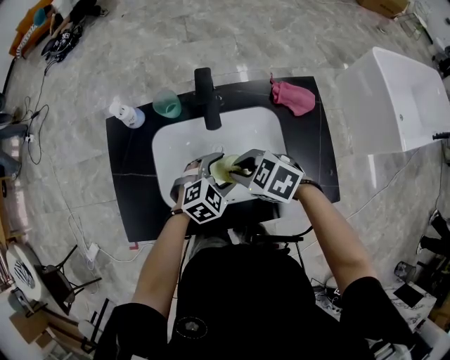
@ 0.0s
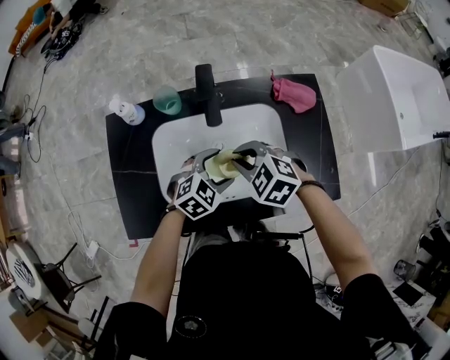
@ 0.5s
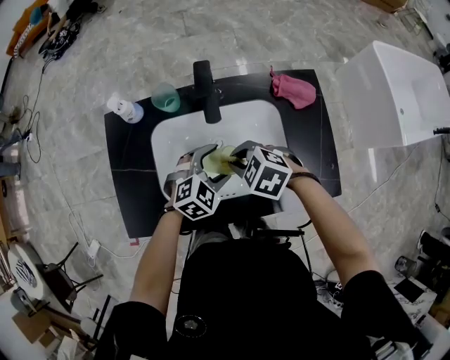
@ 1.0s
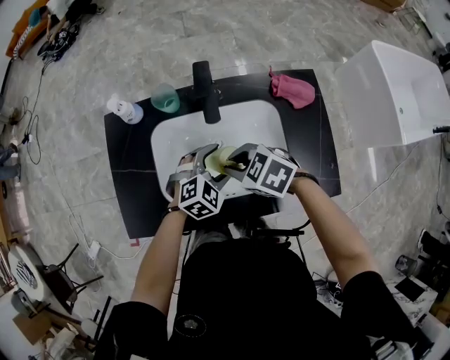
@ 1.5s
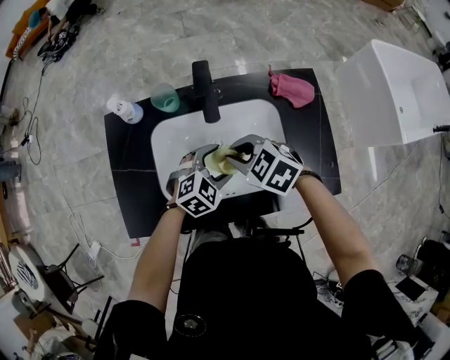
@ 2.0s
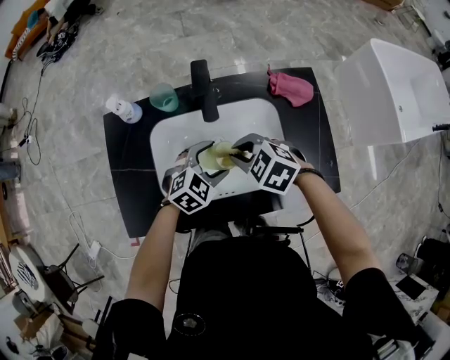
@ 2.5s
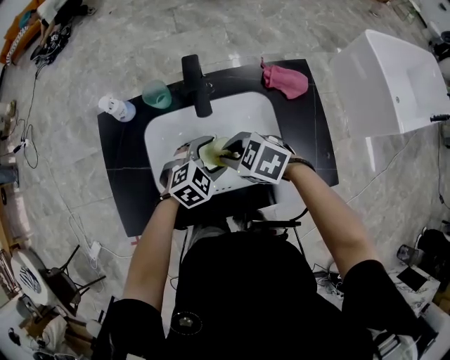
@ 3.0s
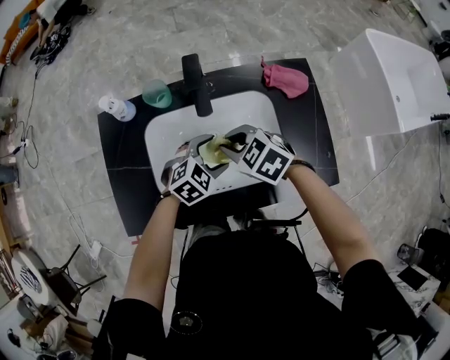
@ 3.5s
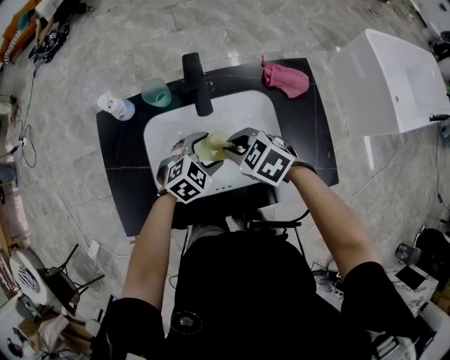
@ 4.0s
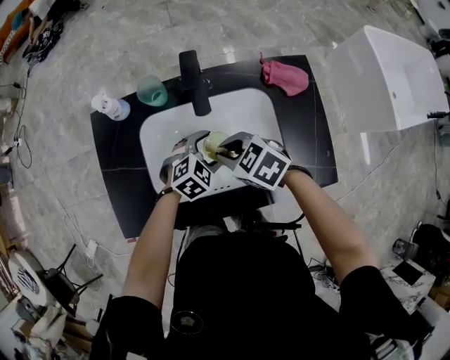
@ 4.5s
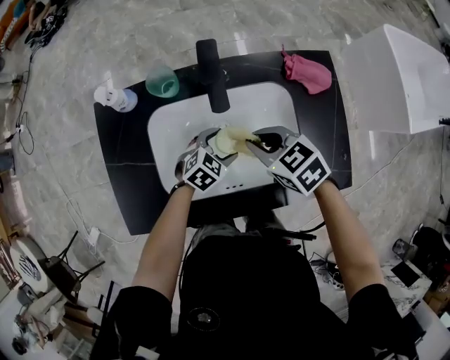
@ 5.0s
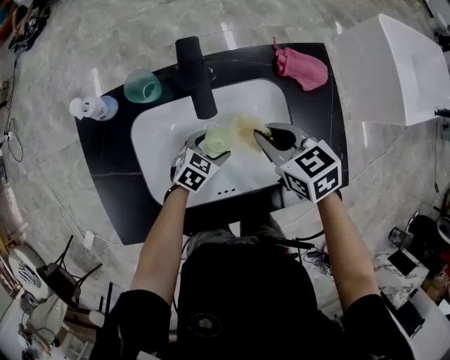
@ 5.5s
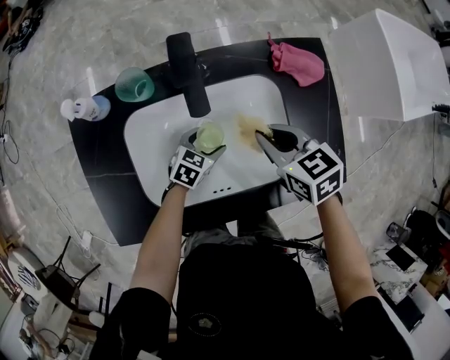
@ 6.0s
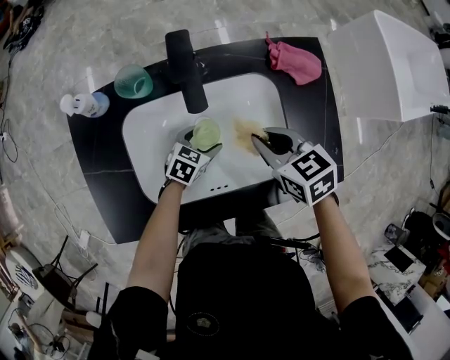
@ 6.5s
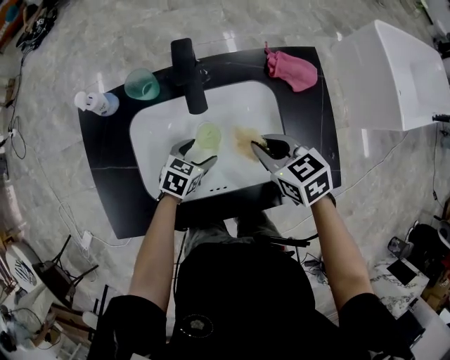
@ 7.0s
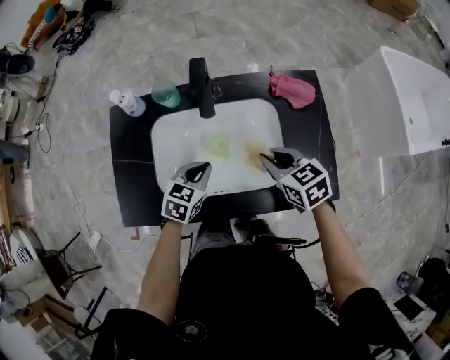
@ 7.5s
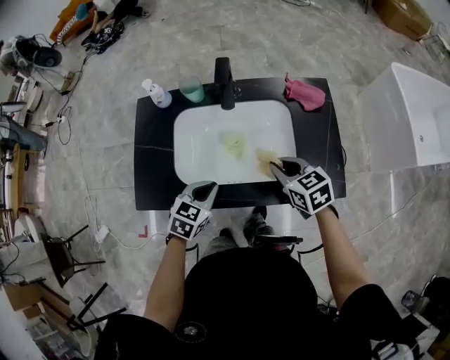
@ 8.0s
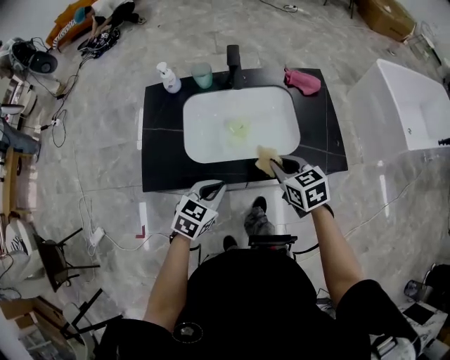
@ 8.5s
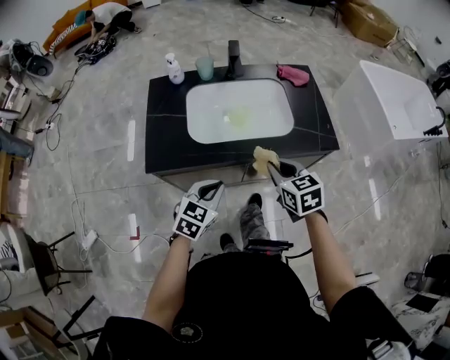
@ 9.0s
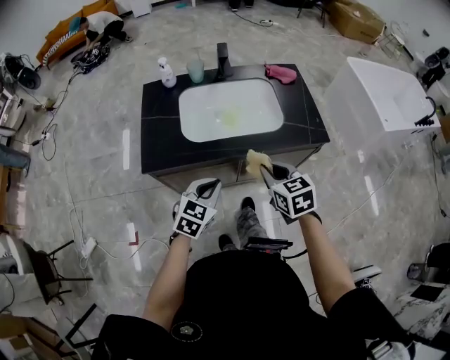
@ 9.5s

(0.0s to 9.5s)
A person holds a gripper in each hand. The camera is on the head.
2.0s - 4.0s: The grippers make only small movements.
4.0s - 5.5s: The left gripper moves downward, some 10 cm, and rotates some 20 degrees. Meanwhile the right gripper changes place by roughly 10 cm, and turns by some 30 degrees.
5.5s - 7.5s: The right gripper is displaced backward by about 5 cm. Meanwhile the left gripper shifts some 15 cm upward, changes its angle by about 20 degrees, and closes.
7.5s - 9.5s: Both grippers move backward, roughly 30 cm.

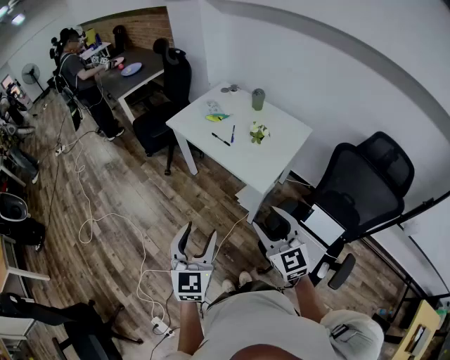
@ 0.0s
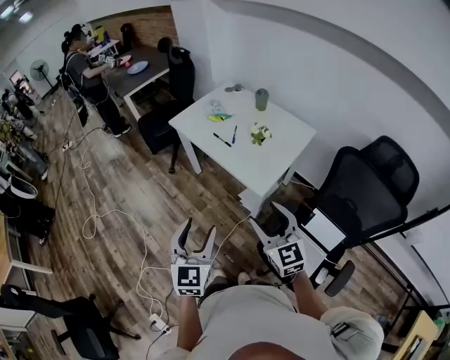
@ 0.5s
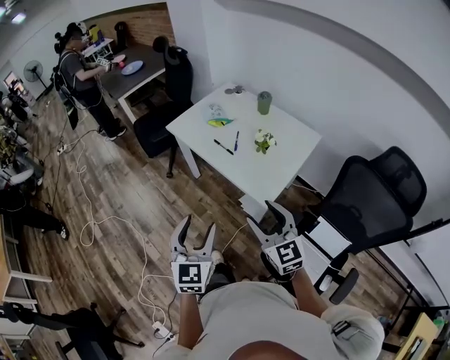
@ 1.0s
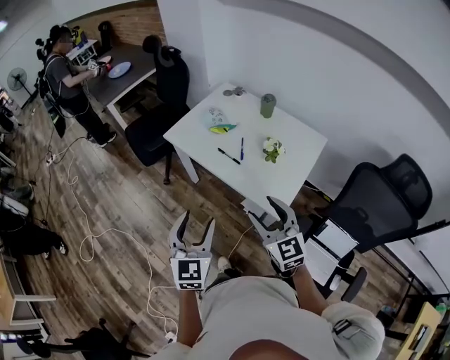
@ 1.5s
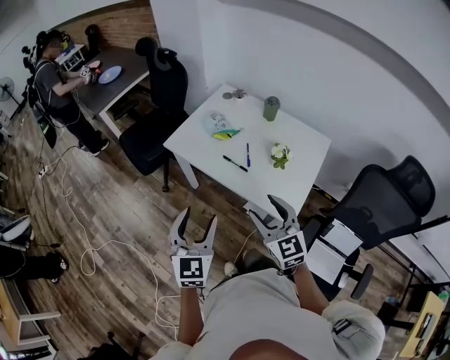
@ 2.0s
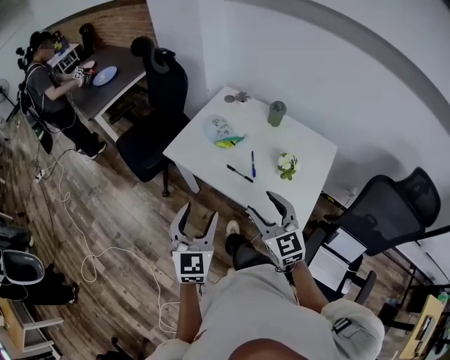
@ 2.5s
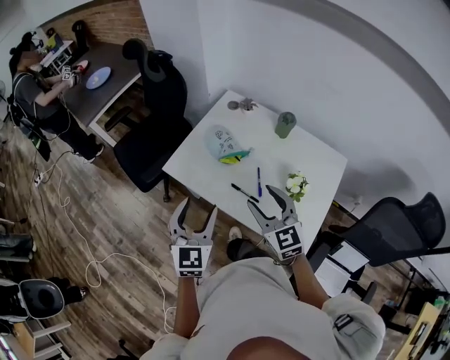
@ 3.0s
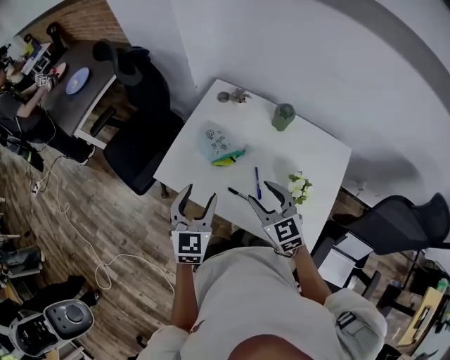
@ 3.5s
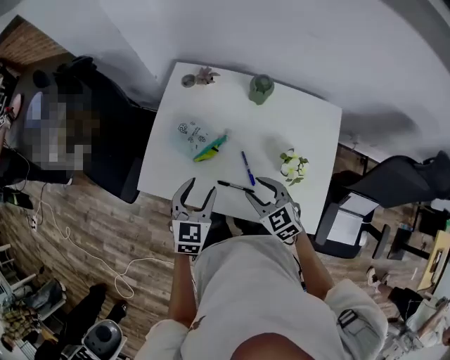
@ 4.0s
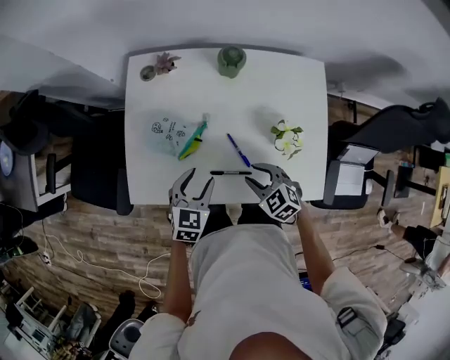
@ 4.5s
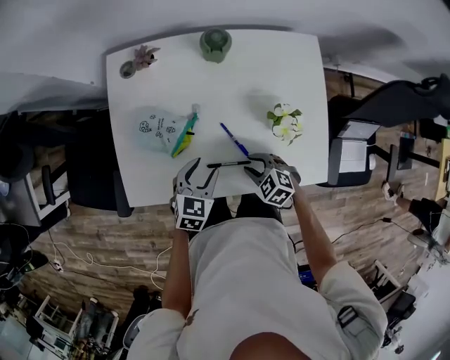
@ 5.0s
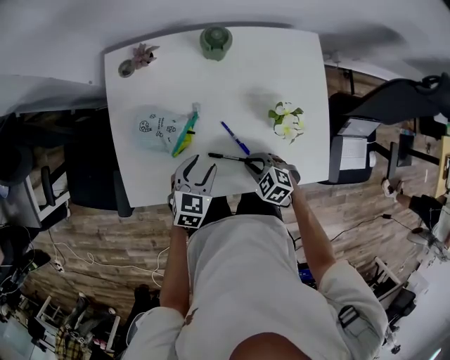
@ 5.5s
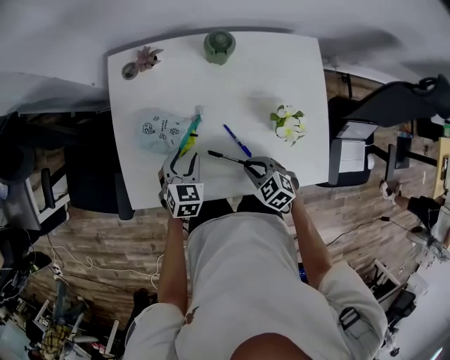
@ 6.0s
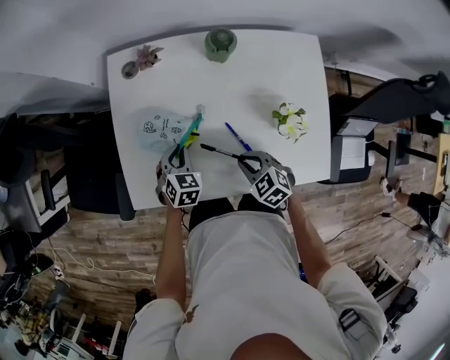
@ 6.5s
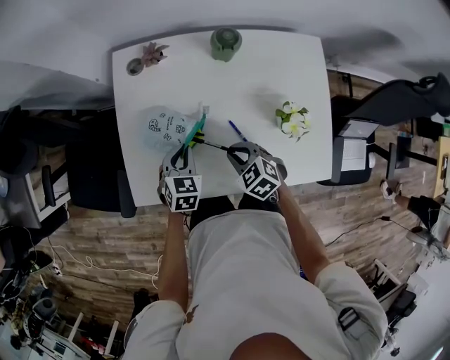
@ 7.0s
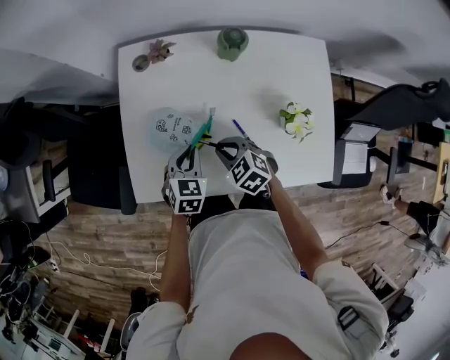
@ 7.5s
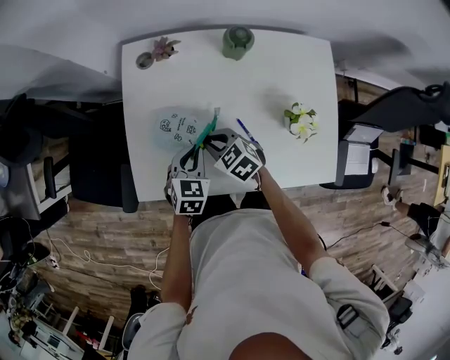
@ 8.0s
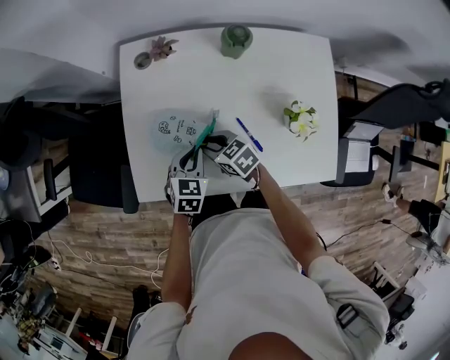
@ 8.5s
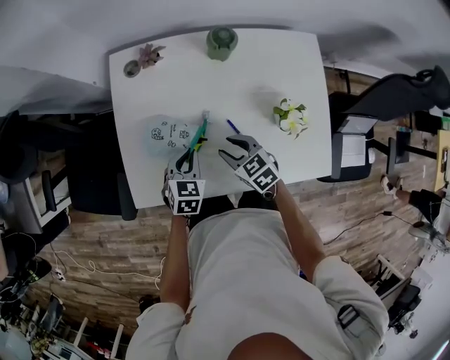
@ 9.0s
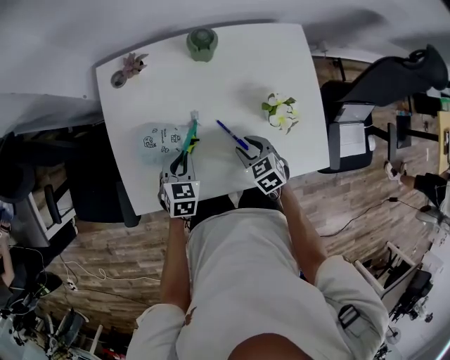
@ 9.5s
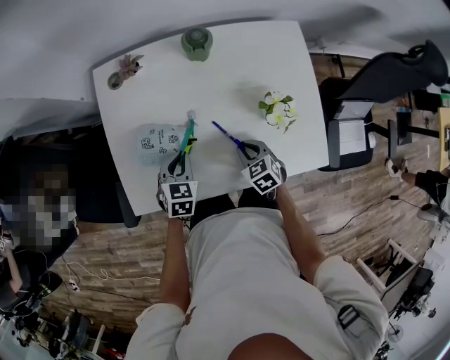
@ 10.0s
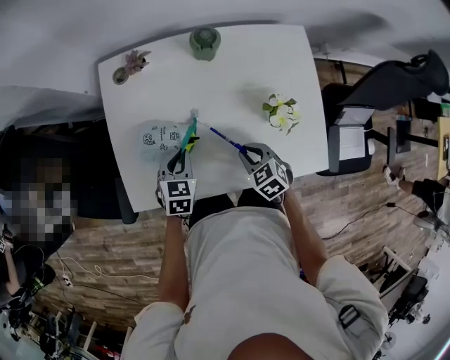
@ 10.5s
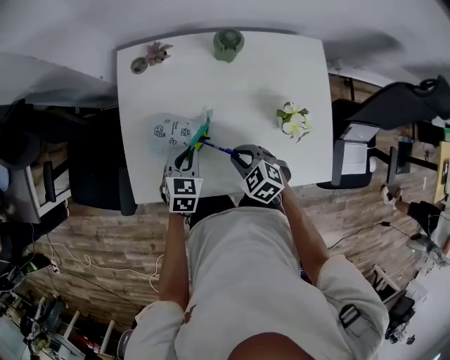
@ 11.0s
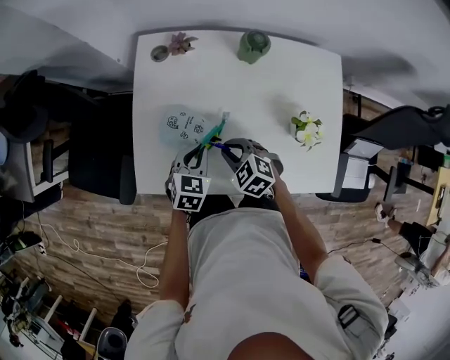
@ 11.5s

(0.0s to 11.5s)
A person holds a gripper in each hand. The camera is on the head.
0.0s - 2.0s: Both grippers move forward, some 30 cm.
2.0s - 4.0s: The grippers both shift forward and downward by approximately 35 cm. The right gripper changes its angle by approximately 30 degrees. The left gripper swivels some 30 degrees.
4.0s - 6.0s: The left gripper heads downward and forward, covering some 15 cm, and rotates some 20 degrees. The right gripper shifts roughly 15 cm downward, changes its angle by some 20 degrees, and closes.
6.0s - 7.5s: The right gripper is displaced forward and to the left by about 15 cm, while the left gripper closes its fingers.
7.5s - 9.5s: The right gripper shifts approximately 10 cm to the right, turns by about 30 degrees, and opens up.
9.5s - 11.5s: The right gripper is displaced to the left by some 15 cm, and changes its angle by roughly 30 degrees.

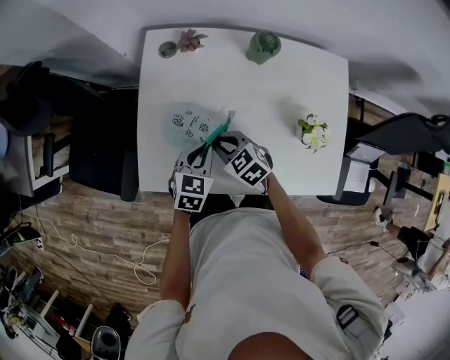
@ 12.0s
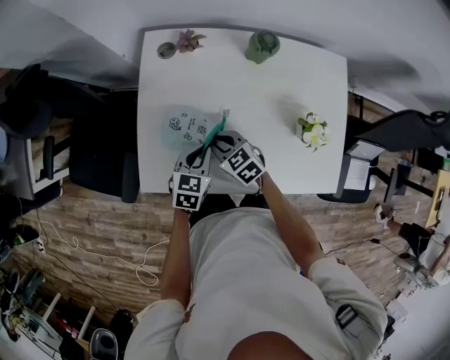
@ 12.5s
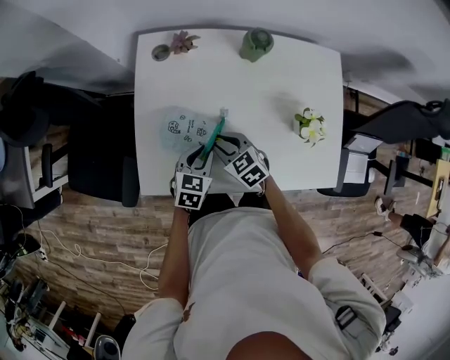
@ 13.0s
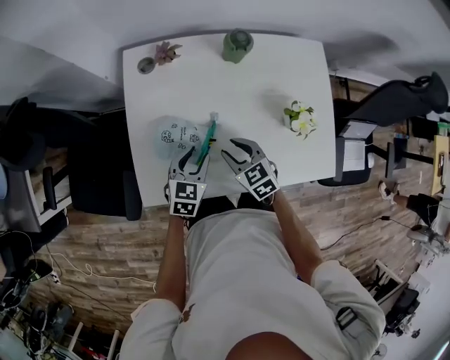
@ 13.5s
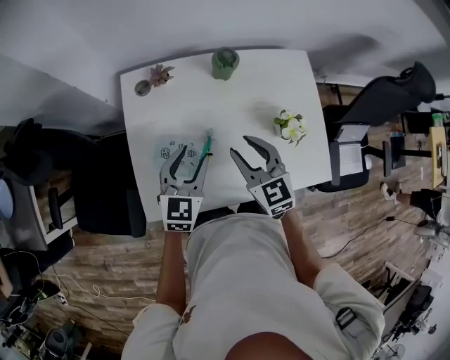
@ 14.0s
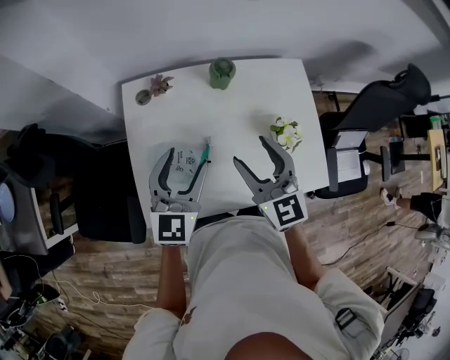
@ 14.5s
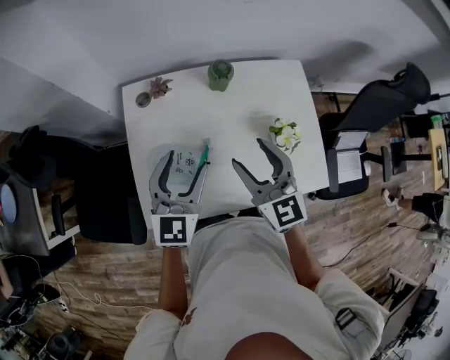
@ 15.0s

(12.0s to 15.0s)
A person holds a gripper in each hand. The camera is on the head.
12.0s - 13.5s: The left gripper opens up; the right gripper shifts approximately 5 cm to the right, and changes its angle by about 20 degrees.
13.5s - 15.0s: Both grippers travel together upward, about 25 cm. The left gripper swivels about 30 degrees, and opens up. Meanwhile the right gripper points its fingers approximately 30 degrees further upward, and opens.

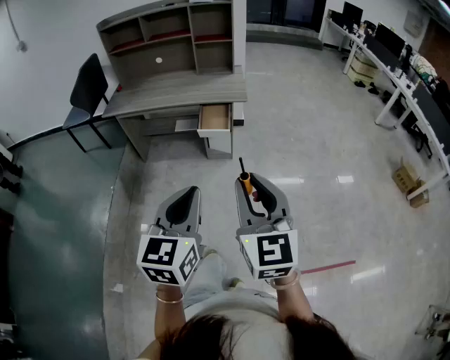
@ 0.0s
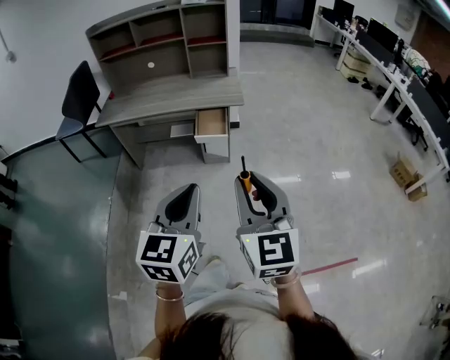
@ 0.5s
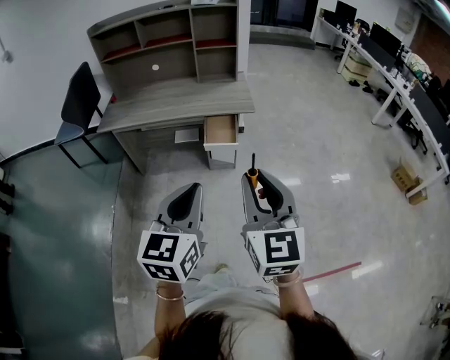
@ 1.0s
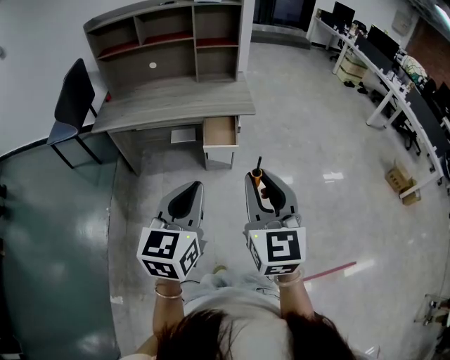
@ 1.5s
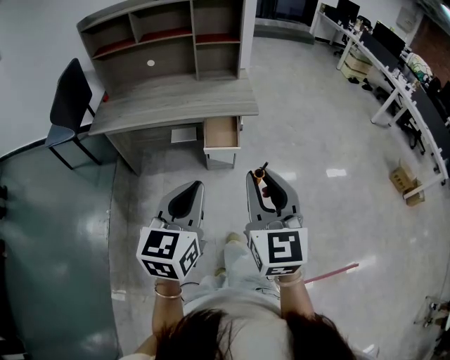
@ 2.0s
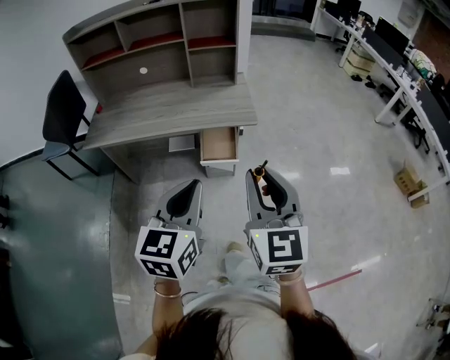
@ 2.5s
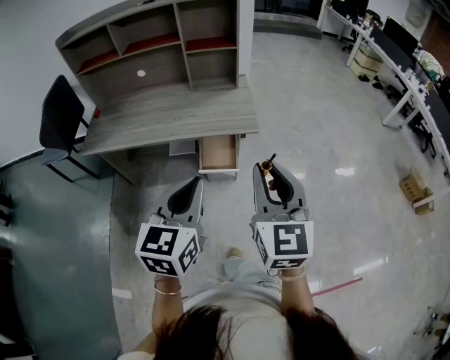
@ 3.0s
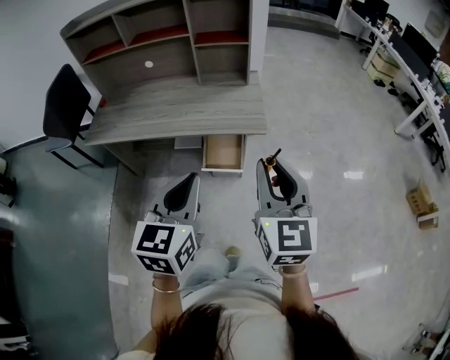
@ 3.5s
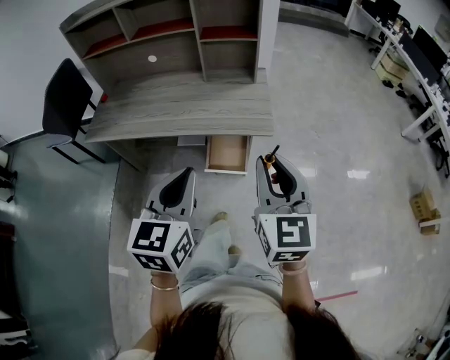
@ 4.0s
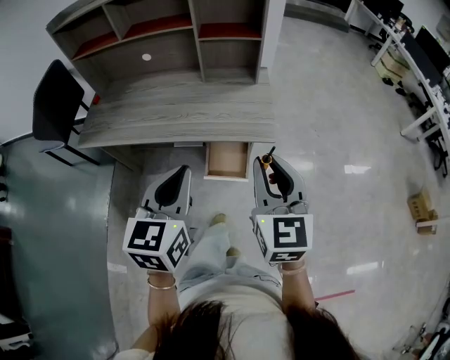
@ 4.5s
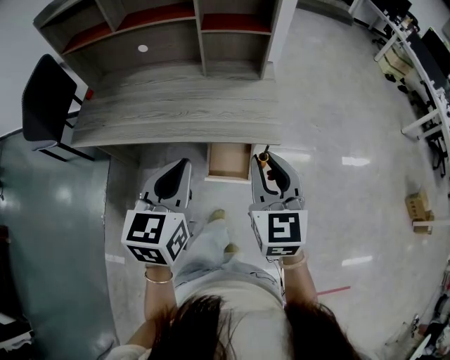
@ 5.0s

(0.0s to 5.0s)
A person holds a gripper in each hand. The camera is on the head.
0.0s - 2.5s: The grippers both shift forward by about 30 cm.
2.5s - 5.0s: The two grippers go about 30 cm forward.
